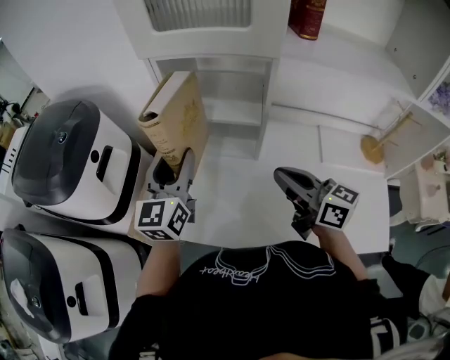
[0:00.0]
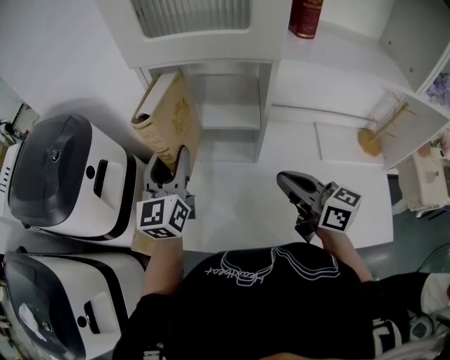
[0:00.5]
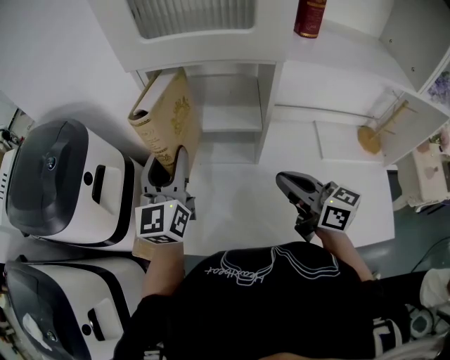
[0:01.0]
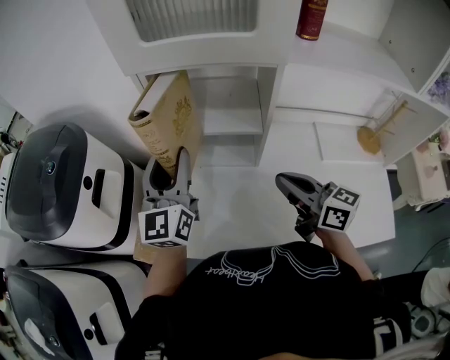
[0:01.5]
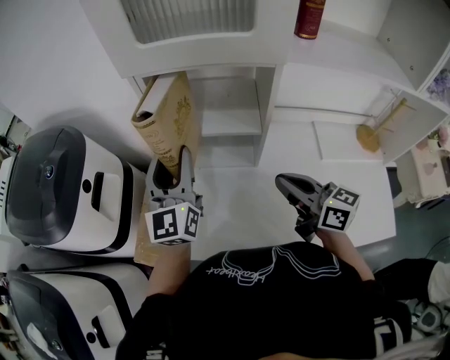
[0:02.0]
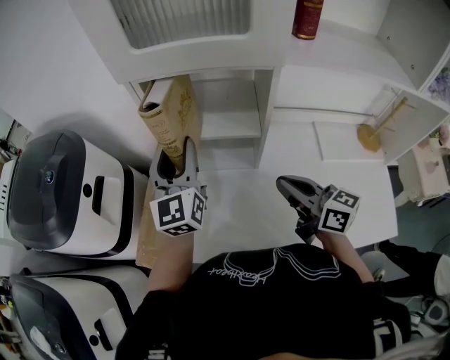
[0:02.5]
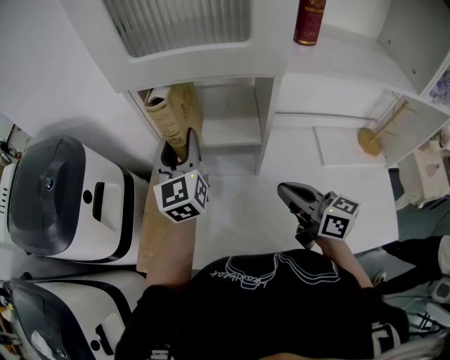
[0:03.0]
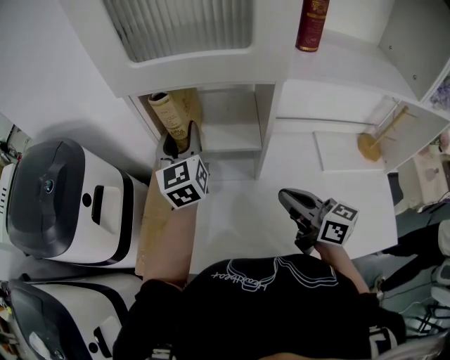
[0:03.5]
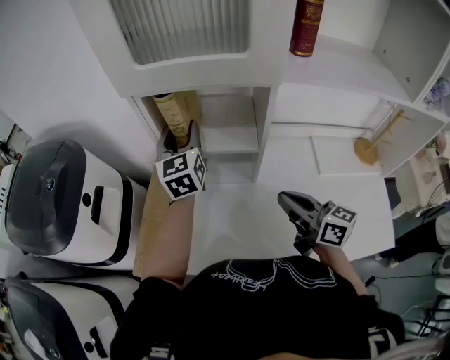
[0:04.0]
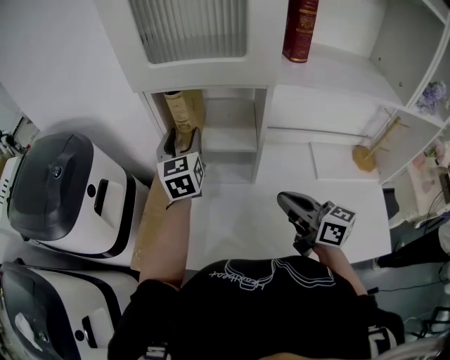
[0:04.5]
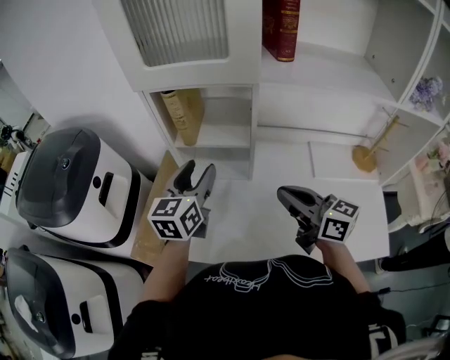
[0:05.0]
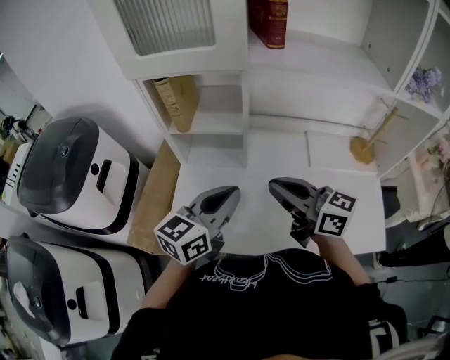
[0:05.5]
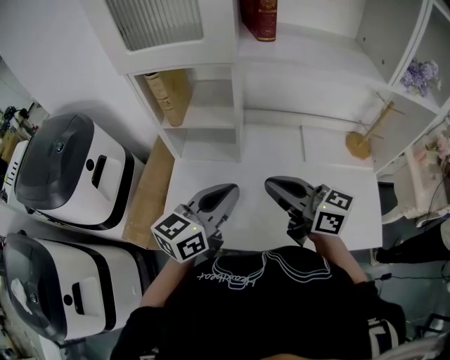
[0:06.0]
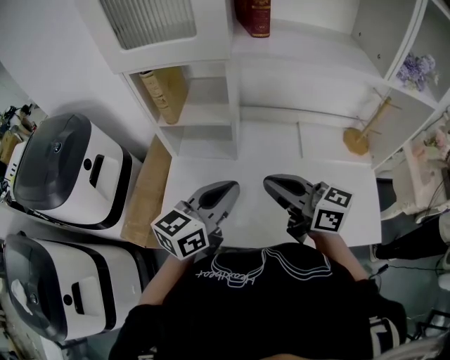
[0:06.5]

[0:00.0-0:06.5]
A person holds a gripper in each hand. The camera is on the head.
0:00.0 to 0:02.0: The left gripper shifts approximately 5 cm forward.
0:02.0 to 0:04.5: The left gripper is displaced forward and to the right by roughly 10 cm.
0:04.5 to 0:06.5: The left gripper heads backward and to the right, covering some 35 cm, swivels some 50 degrees, and closes up. Meanwhile the right gripper moves backward, some 5 cm.

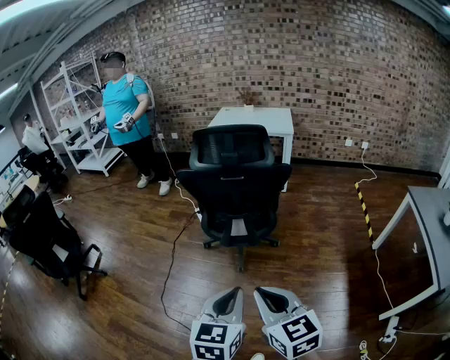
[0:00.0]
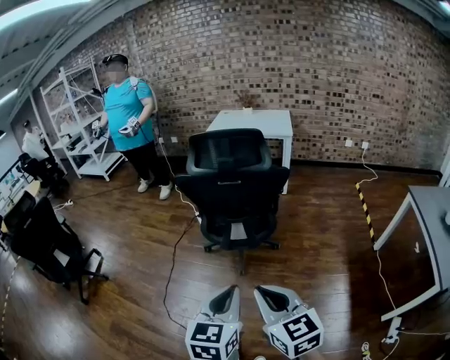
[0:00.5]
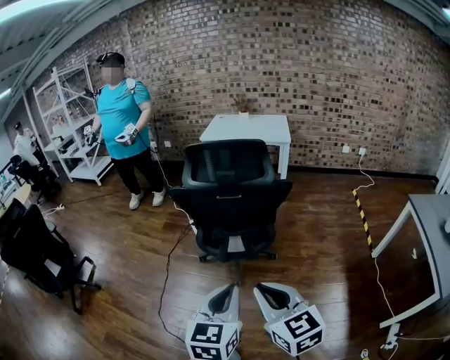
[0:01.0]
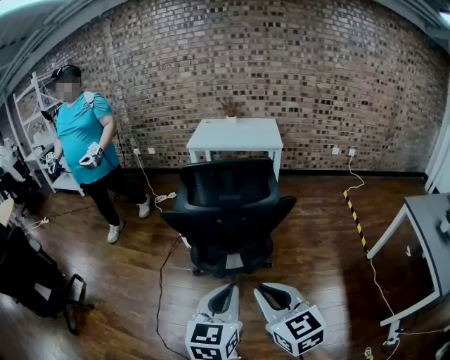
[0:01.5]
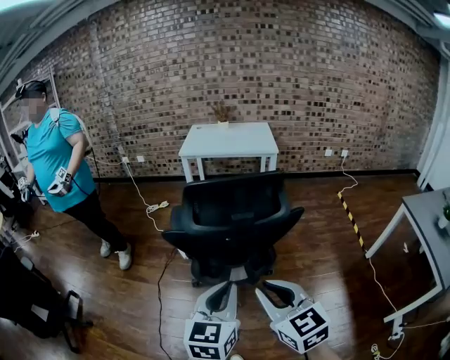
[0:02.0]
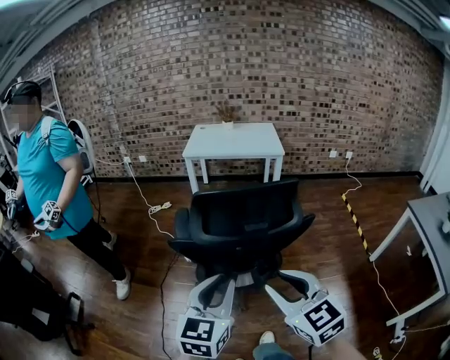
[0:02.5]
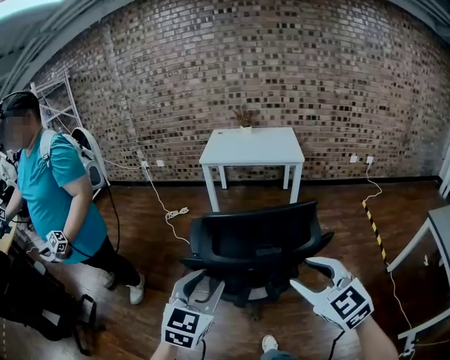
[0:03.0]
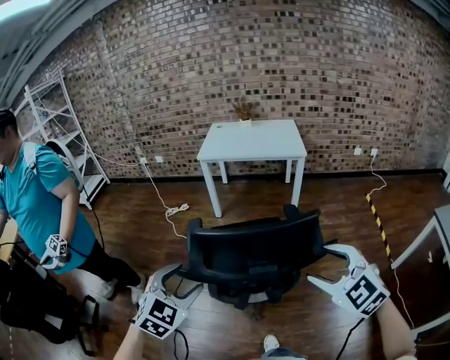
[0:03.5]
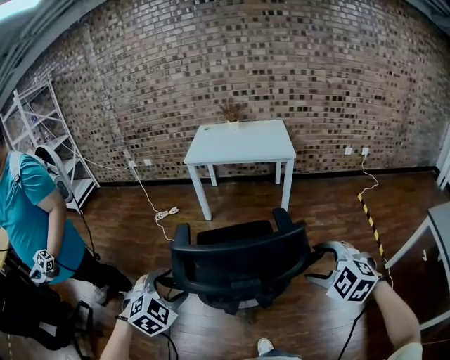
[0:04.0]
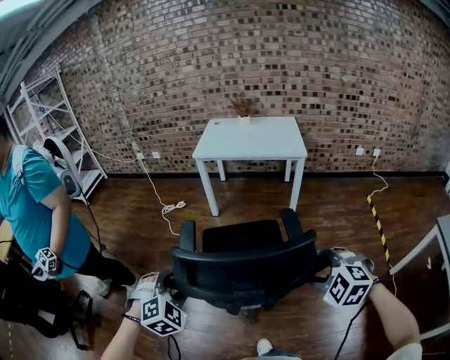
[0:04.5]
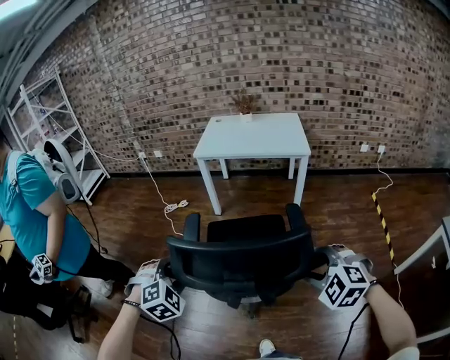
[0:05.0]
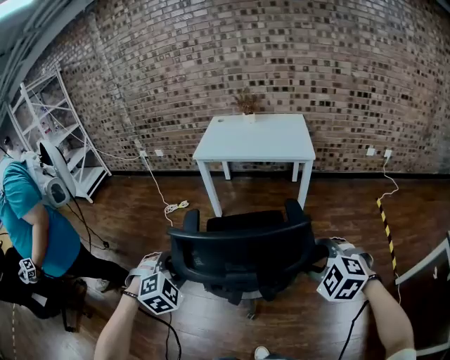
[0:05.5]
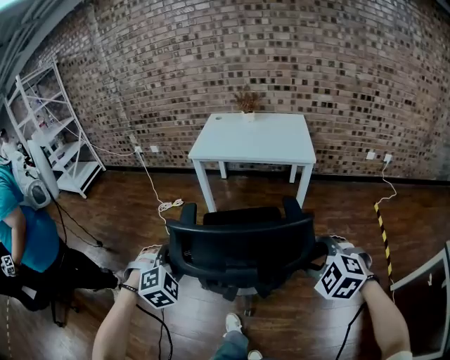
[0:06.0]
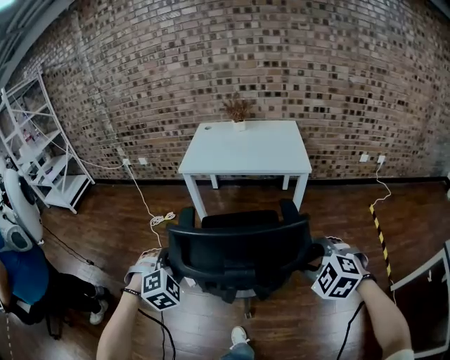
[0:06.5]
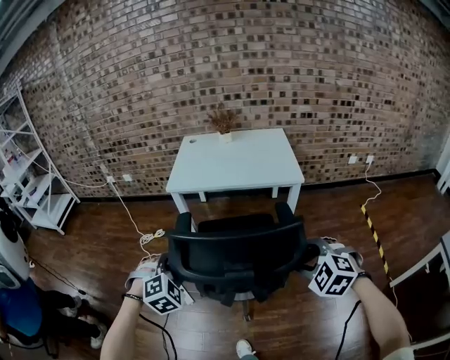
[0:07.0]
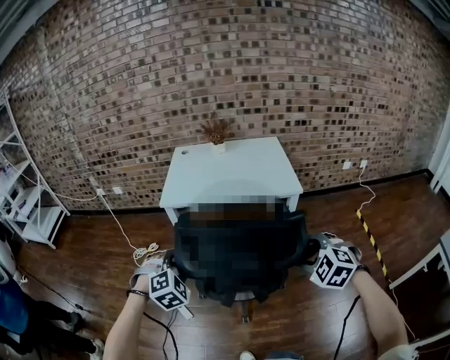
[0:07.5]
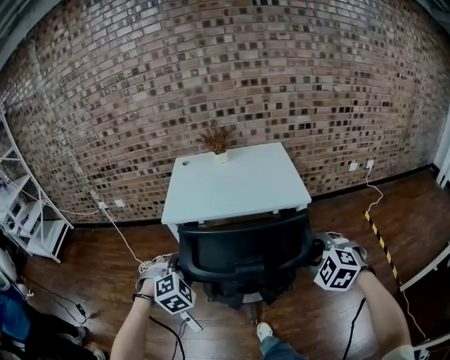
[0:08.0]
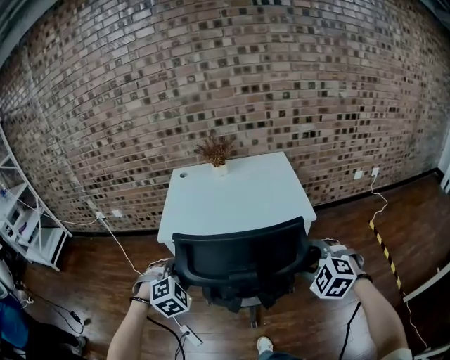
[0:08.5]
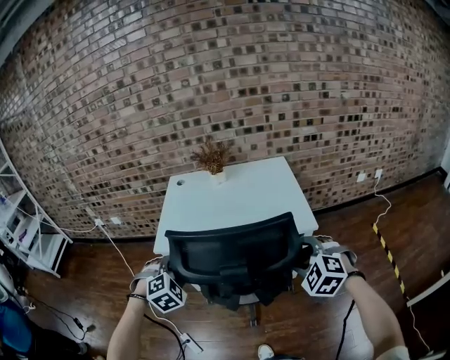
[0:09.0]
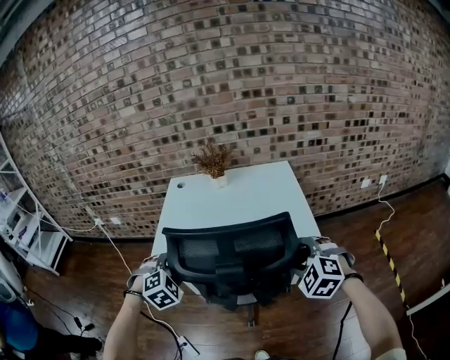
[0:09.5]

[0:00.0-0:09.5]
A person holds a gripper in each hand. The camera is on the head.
0:00.0 to 0:02.0: The two grippers go about 25 cm forward.
0:02.0 to 0:04.0: The left gripper shifts some 25 cm forward and to the left, rotates around the line of its fingers by roughly 50 degrees, clockwise from behind, and opens its fingers, while the right gripper heads forward and to the right, covering roughly 30 cm, rotates roughly 50 degrees, and opens up.
0:04.0 to 0:05.5: The grippers both shift forward by some 15 cm.
0:05.5 to 0:07.5: Both grippers travel together forward, some 30 cm.
0:07.5 to 0:09.5: The two grippers go about 30 cm forward.

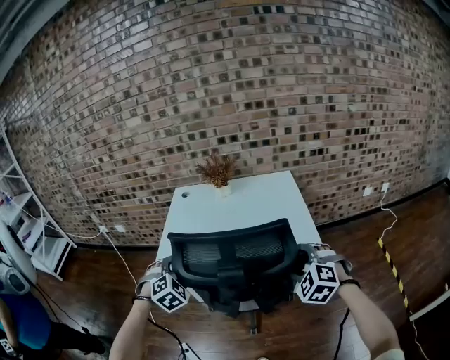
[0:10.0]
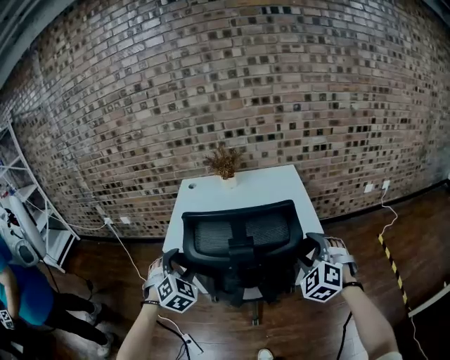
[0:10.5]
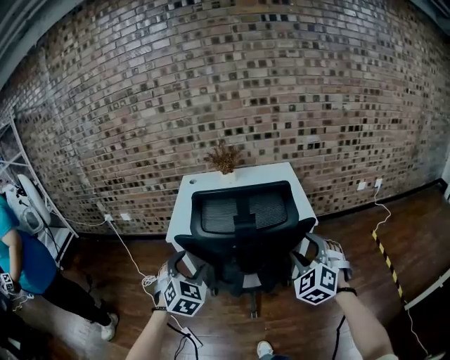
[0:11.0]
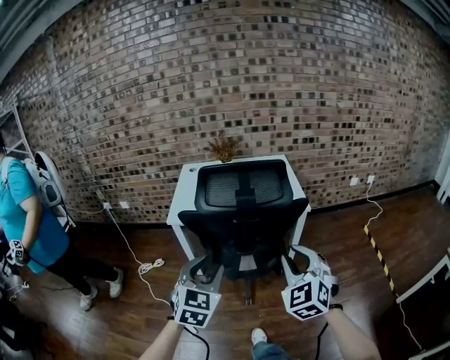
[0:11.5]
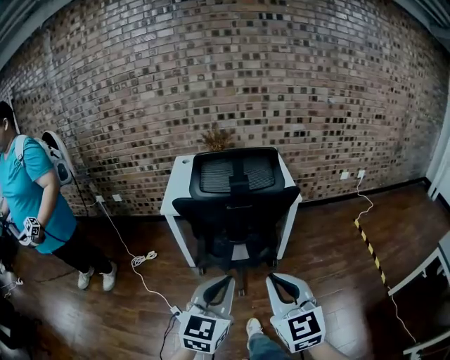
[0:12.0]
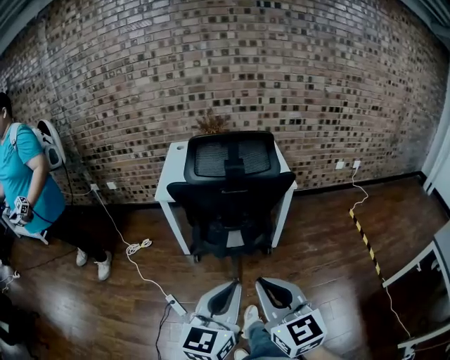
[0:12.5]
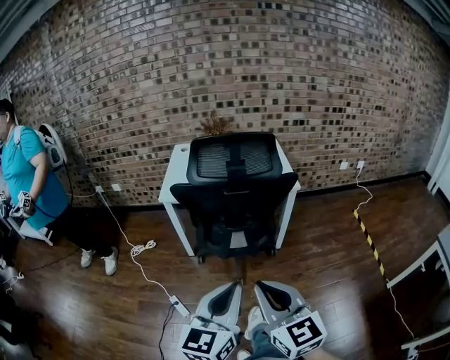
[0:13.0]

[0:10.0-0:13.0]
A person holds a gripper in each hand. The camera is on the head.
0:10.0 to 0:11.5: Both grippers move backward, about 25 cm. The left gripper rotates approximately 40 degrees, and closes; the right gripper swivels about 30 degrees, and closes its fingers.
0:11.5 to 0:13.0: The left gripper goes some 20 cm backward and to the right, changes its angle by roughly 30 degrees, and closes its fingers; the right gripper is displaced backward by roughly 20 cm, rotates roughly 40 degrees, and closes its fingers.

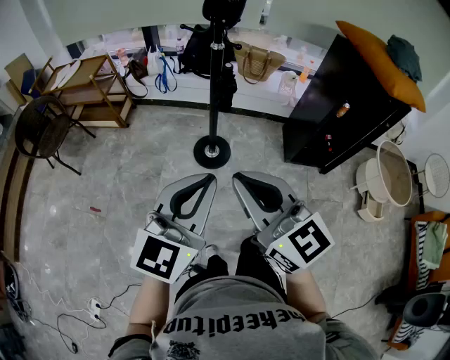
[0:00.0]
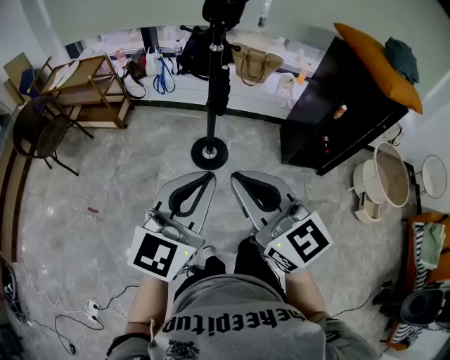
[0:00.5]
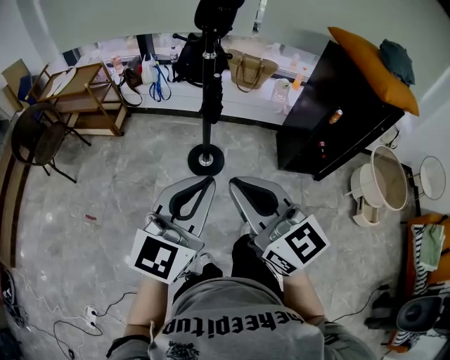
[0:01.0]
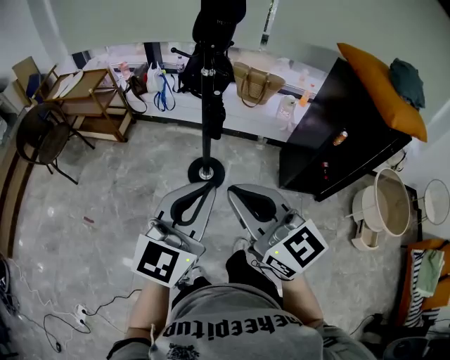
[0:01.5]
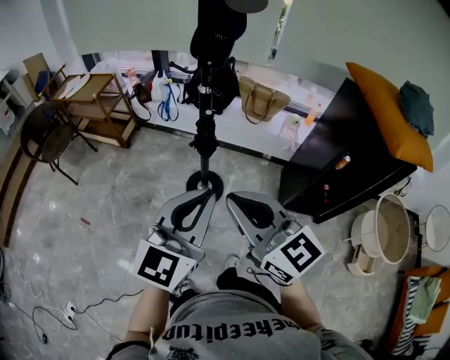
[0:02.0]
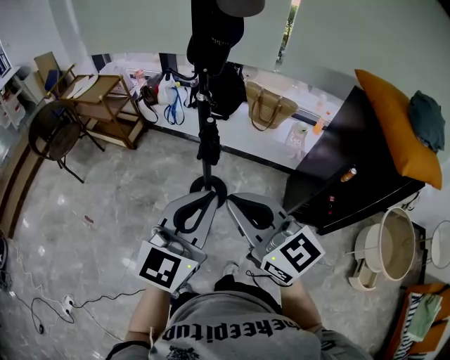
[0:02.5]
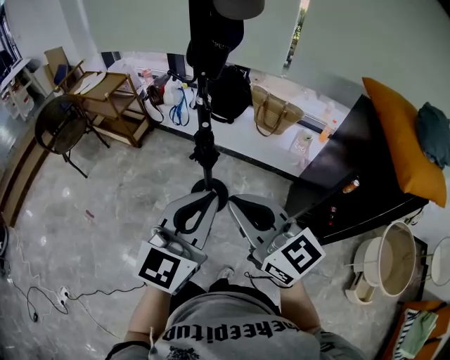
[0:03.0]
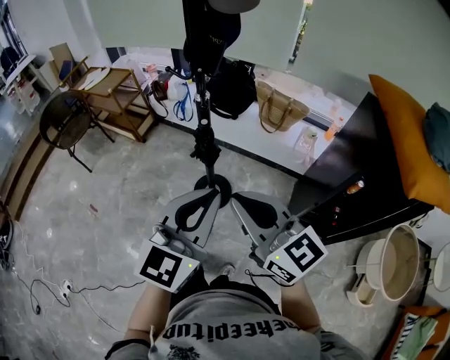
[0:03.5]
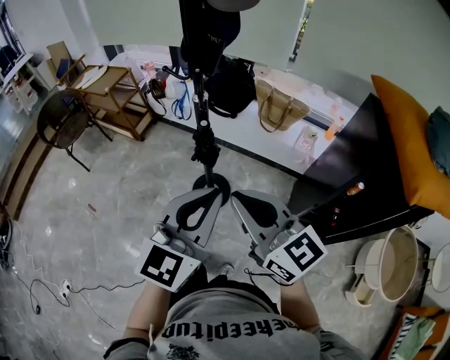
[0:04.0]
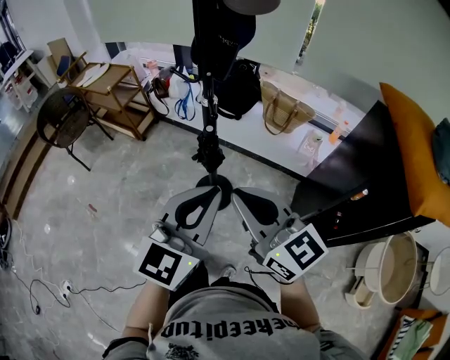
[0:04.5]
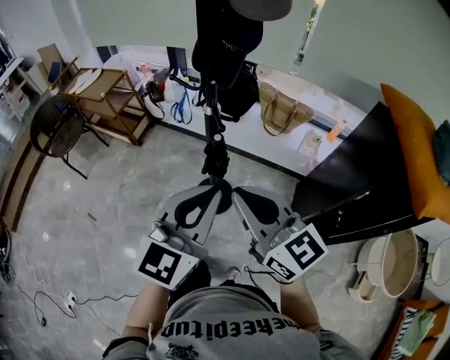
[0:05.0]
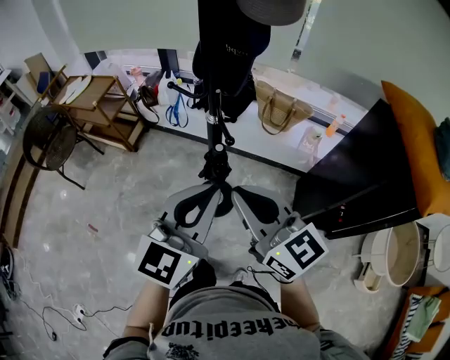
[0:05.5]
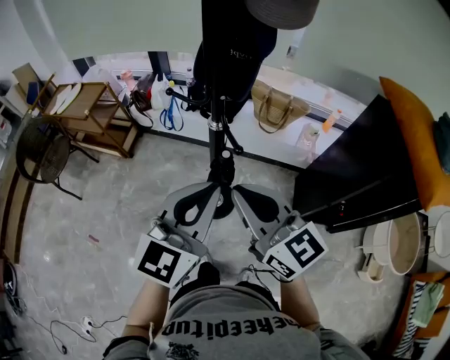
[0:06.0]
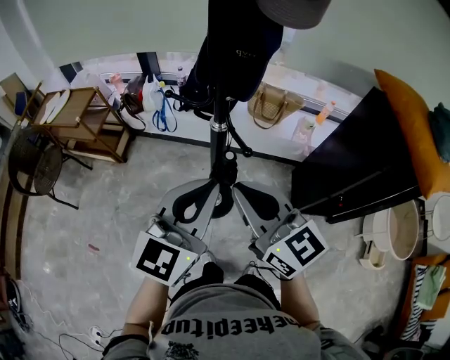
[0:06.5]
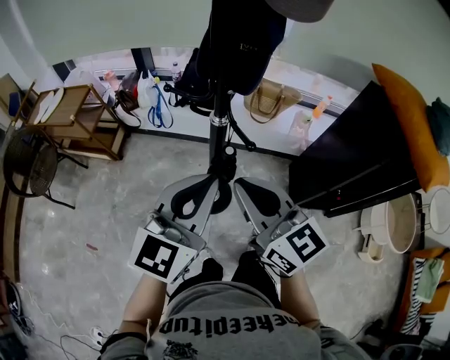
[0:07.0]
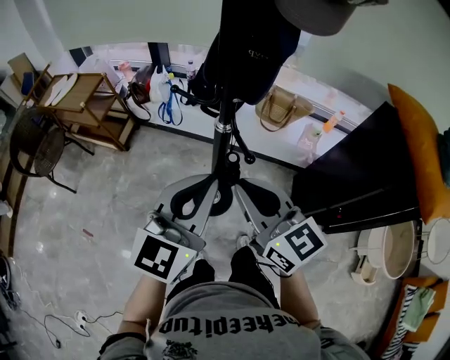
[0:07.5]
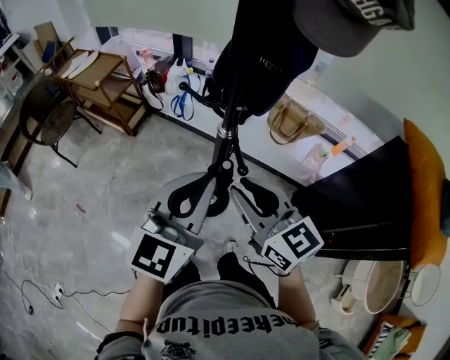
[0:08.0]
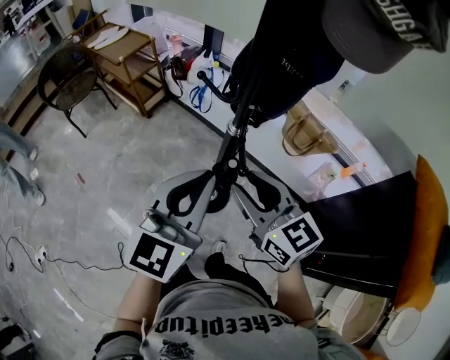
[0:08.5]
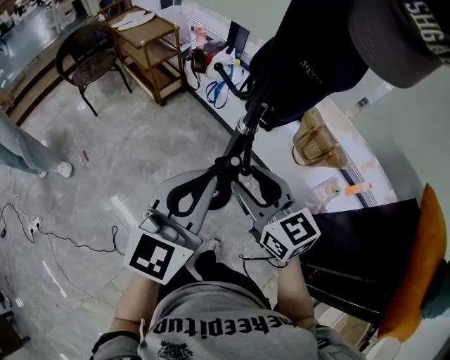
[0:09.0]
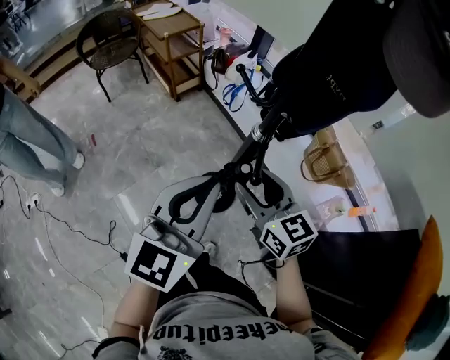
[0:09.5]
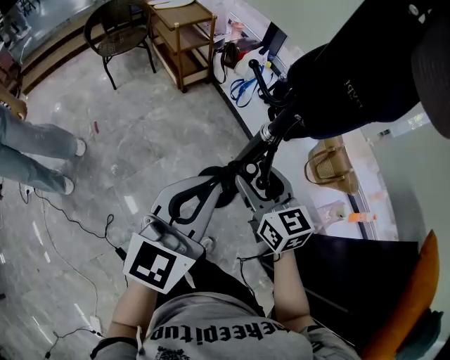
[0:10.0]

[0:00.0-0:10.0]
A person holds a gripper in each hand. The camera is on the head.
0:00.0 to 0:02.0: The right gripper shifts some 15 cm forward and to the right. Meanwhile the left gripper shifts roughly 15 cm to the right and forward.
0:02.0 to 0:04.0: Both grippers move to the right and forward, some 10 cm.
0:04.0 to 0:06.0: The two grippers go roughly 15 cm forward and to the left.
0:06.0 to 0:08.0: Both grippers move forward, approximately 5 cm.
0:08.0 to 0:10.0: The right gripper shifts roughly 15 cm downward and forward, rotates roughly 20 degrees, and opens its fingers. The left gripper changes its angle by about 30 degrees.
